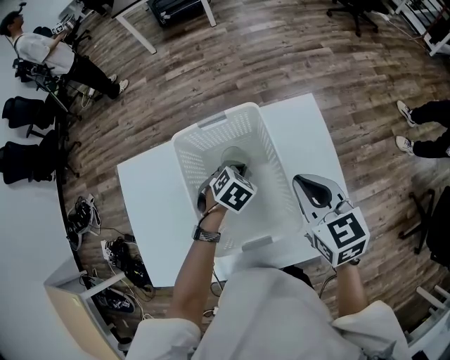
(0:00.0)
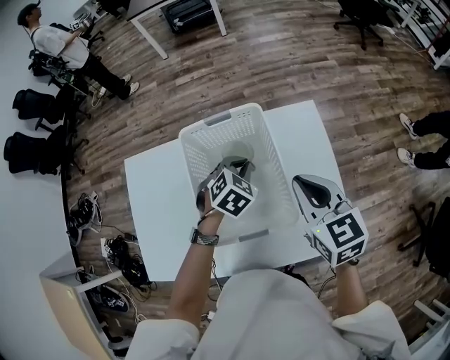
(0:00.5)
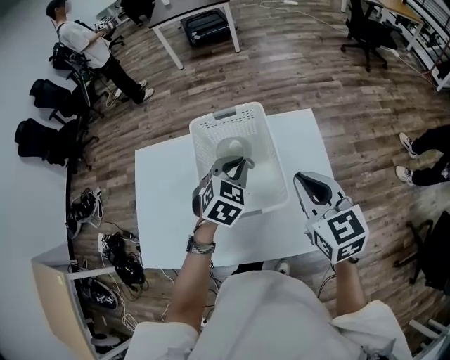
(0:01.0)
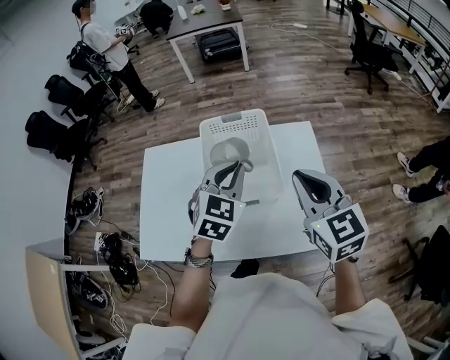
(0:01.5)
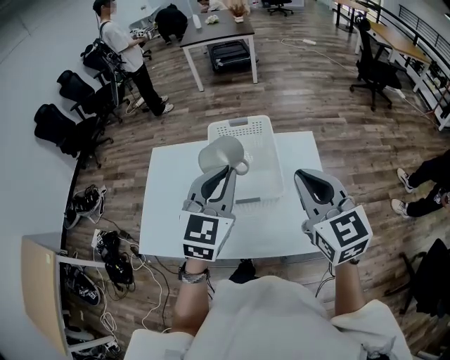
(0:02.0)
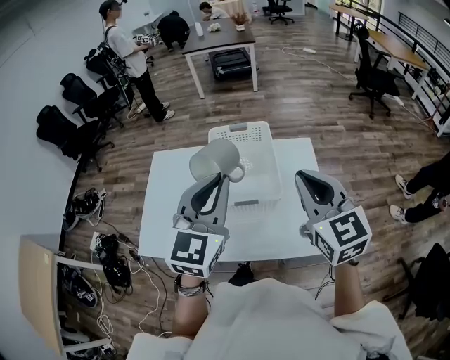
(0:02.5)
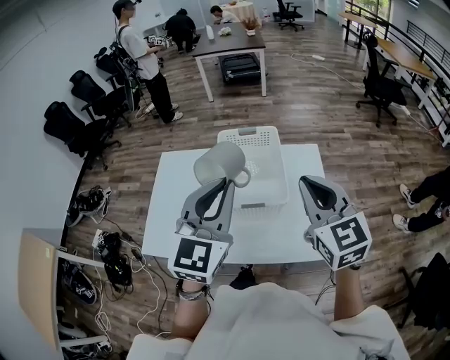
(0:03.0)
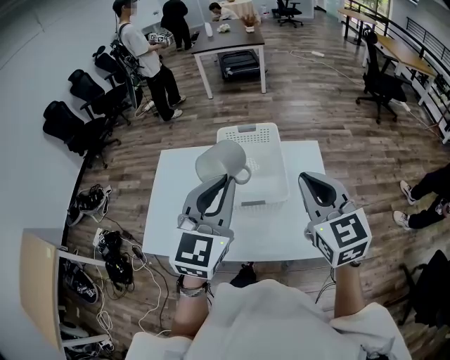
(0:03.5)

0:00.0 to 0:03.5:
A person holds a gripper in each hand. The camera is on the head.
0:00.0 to 0:02.0: The left gripper moves upward and backward, about 40 cm, and tilts its fingers some 60 degrees upward; the right gripper is displaced upward and backward by roughly 25 cm, and turns by roughly 30 degrees.
0:02.0 to 0:03.5: The left gripper shifts some 5 cm upward.

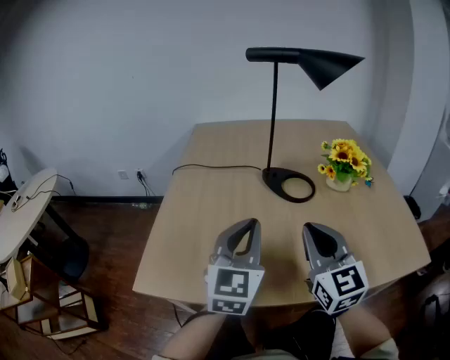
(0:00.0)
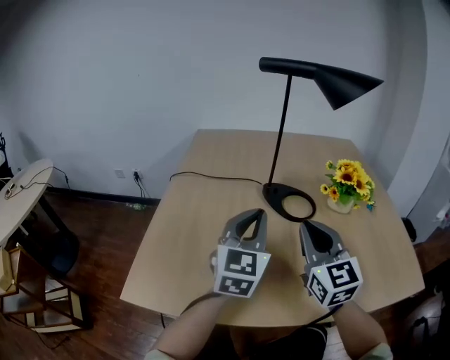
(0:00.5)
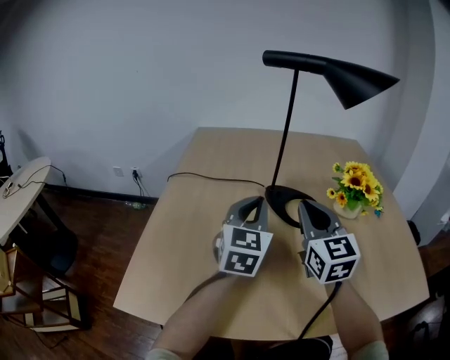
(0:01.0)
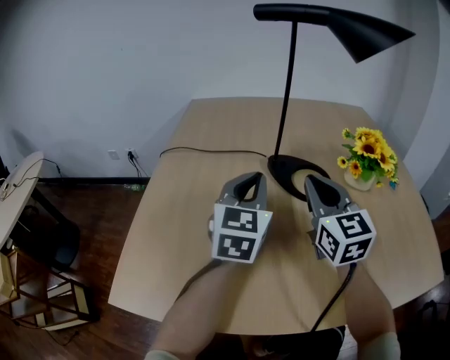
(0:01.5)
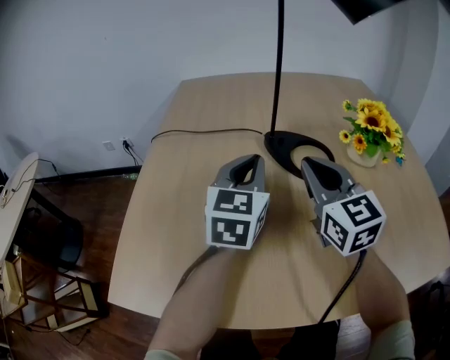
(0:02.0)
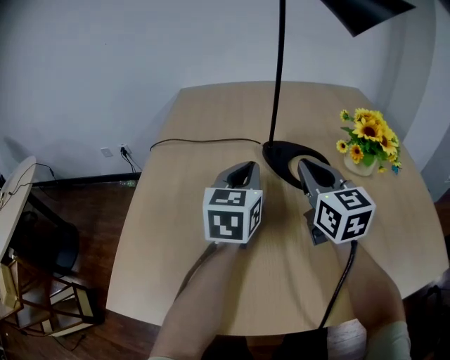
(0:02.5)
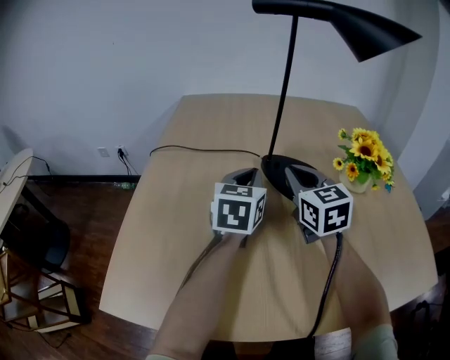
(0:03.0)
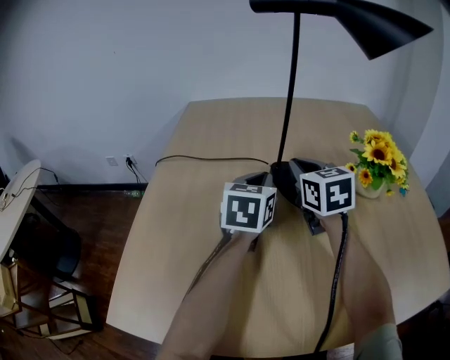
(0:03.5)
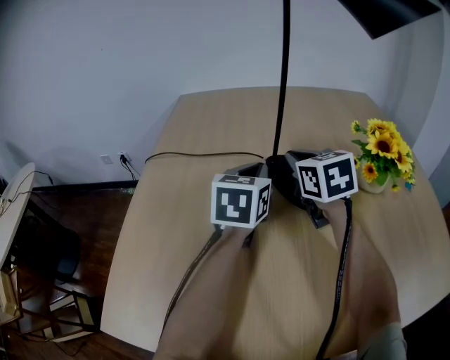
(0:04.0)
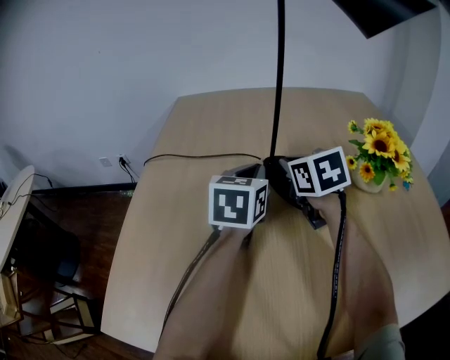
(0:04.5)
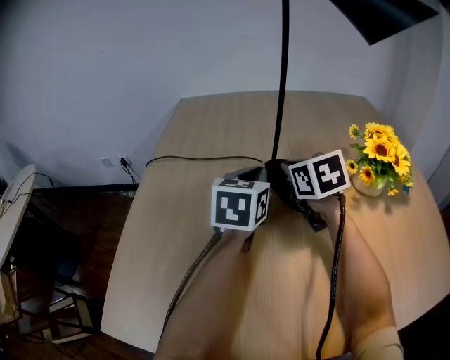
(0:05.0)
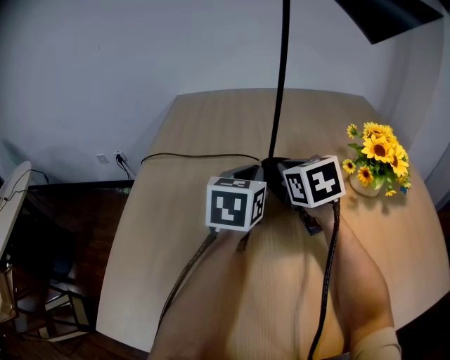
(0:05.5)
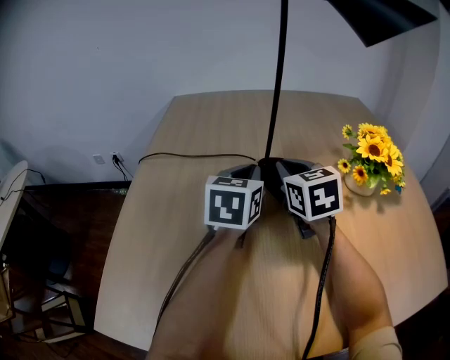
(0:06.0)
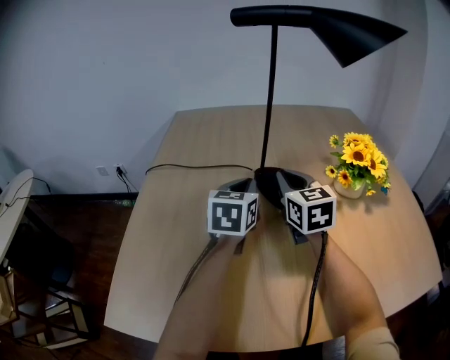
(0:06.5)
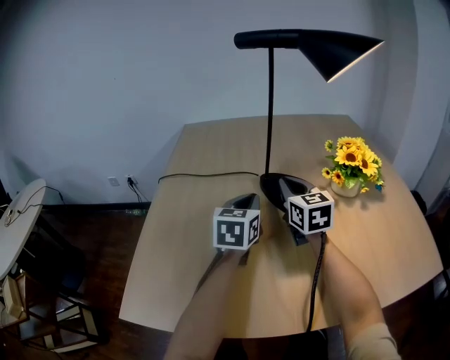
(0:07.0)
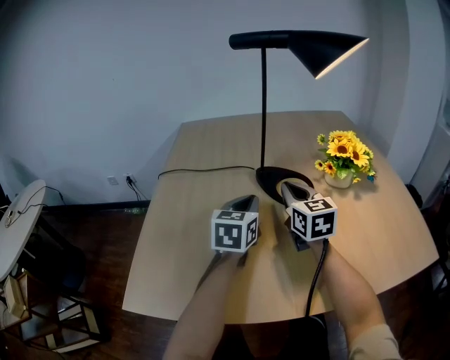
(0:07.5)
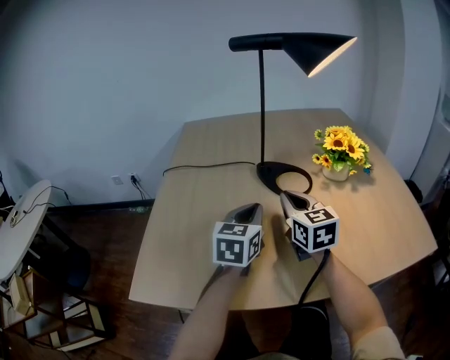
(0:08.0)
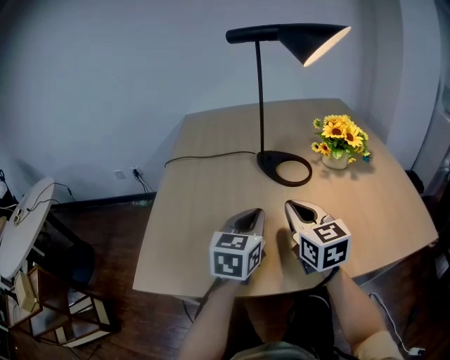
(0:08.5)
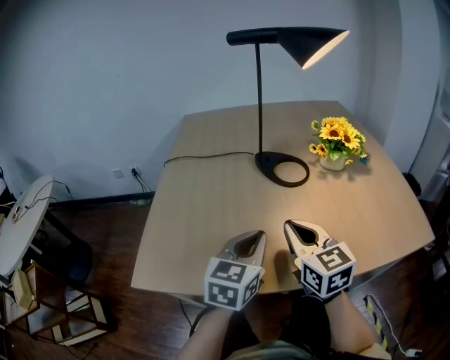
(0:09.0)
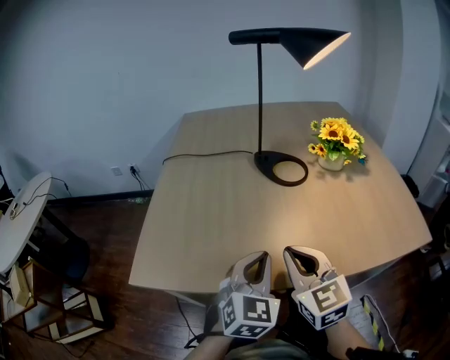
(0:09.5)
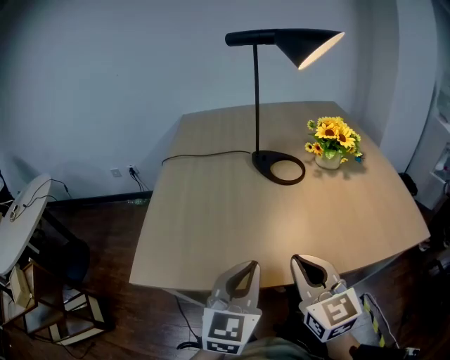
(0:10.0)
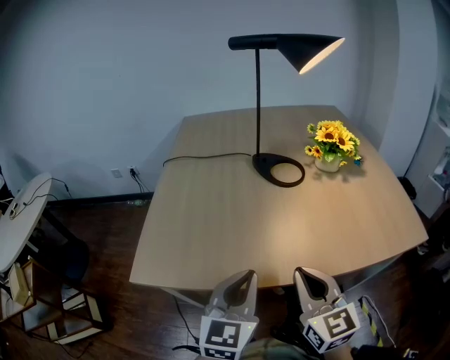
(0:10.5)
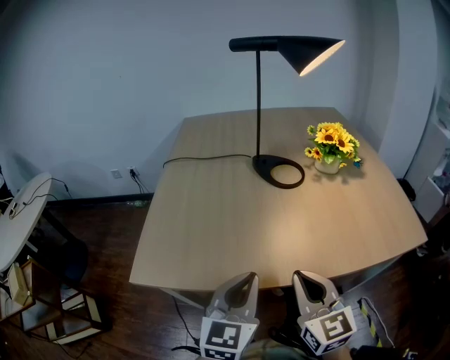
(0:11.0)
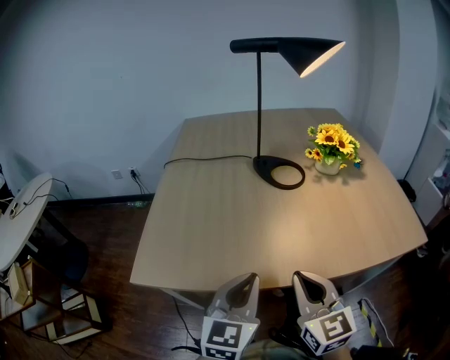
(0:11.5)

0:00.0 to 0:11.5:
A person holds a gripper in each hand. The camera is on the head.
0:00.0 to 0:02.0: Both grippers move forward, about 15 cm.
0:02.0 to 0:04.0: The left gripper heads forward, covering about 10 cm. Meanwhile the right gripper shifts approximately 15 cm forward, and rotates roughly 20 degrees.
0:04.0 to 0:06.0: There are only small adjustments of the grippers.
0:06.0 to 0:07.5: Both grippers move backward, approximately 10 cm.
0:07.5 to 0:09.5: Both grippers move backward, some 25 cm. The left gripper changes its angle by about 20 degrees.
0:09.5 to 0:11.5: Both grippers travel together backward, approximately 5 cm. The left gripper changes its angle by about 20 degrees.

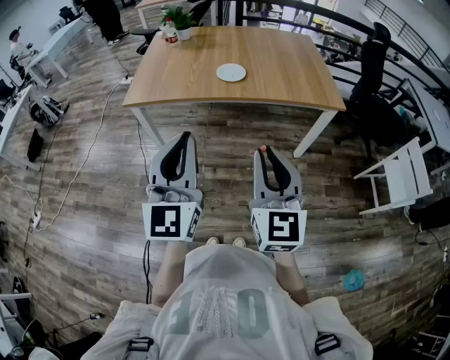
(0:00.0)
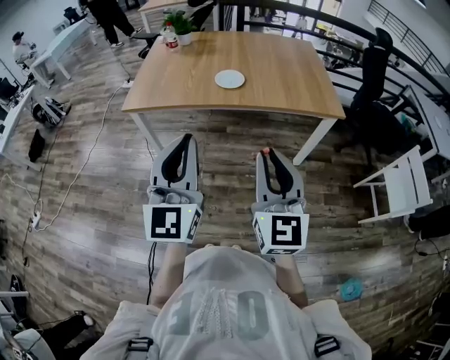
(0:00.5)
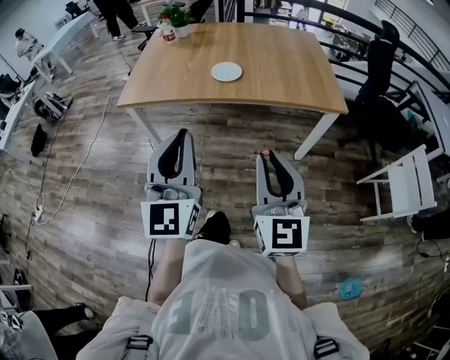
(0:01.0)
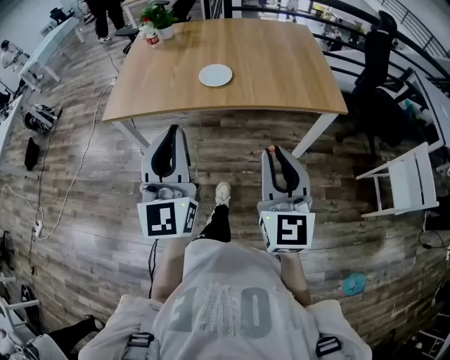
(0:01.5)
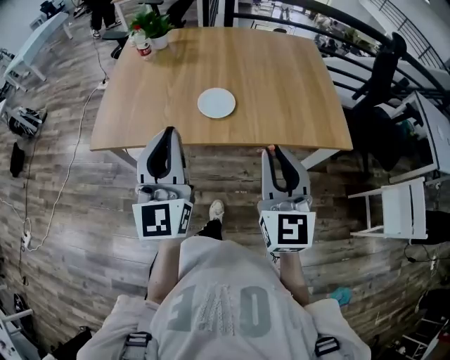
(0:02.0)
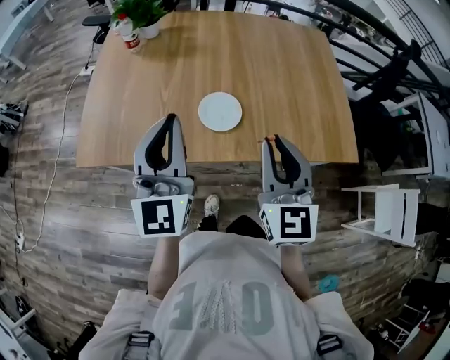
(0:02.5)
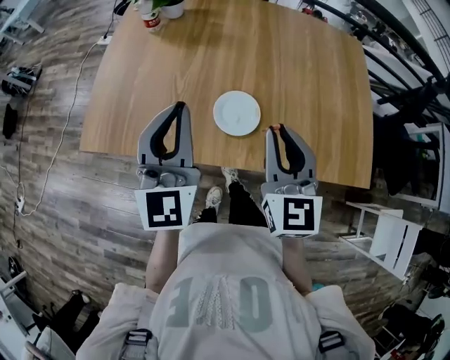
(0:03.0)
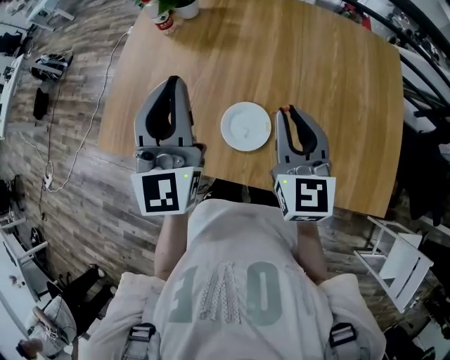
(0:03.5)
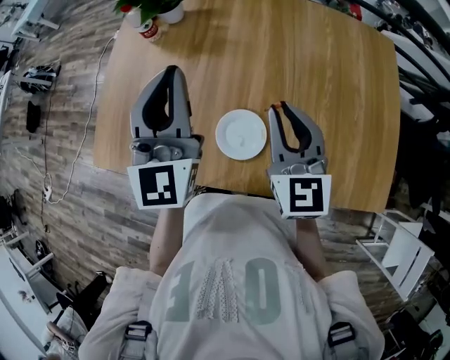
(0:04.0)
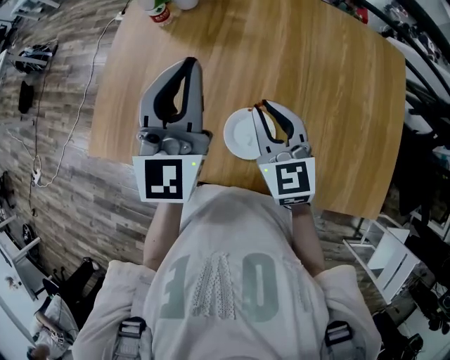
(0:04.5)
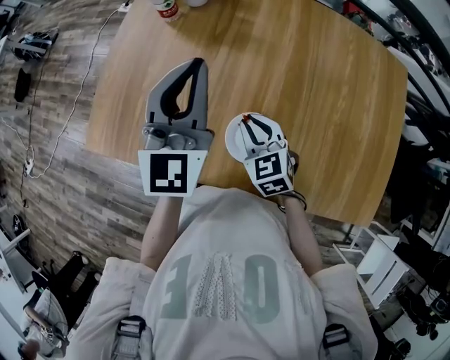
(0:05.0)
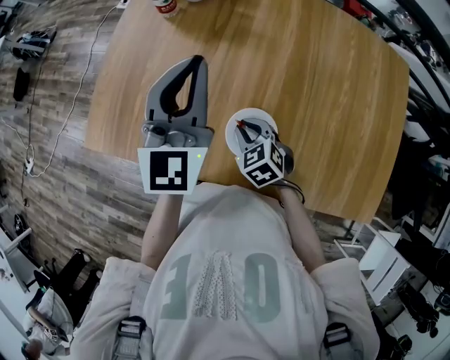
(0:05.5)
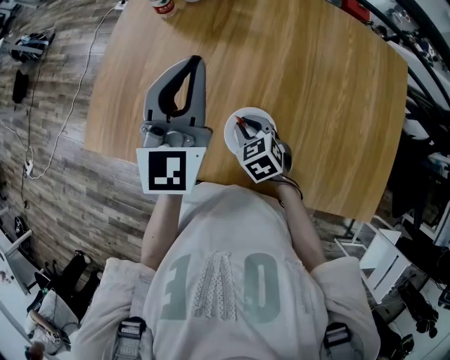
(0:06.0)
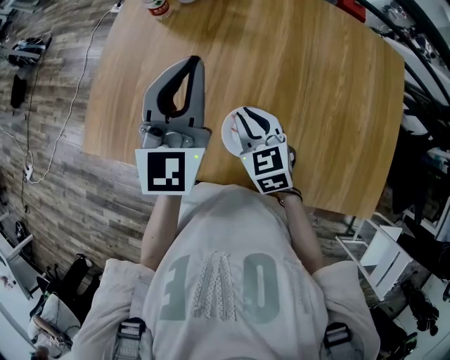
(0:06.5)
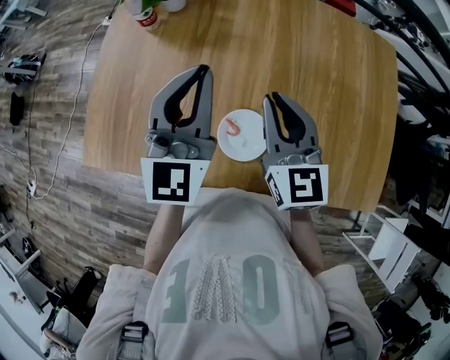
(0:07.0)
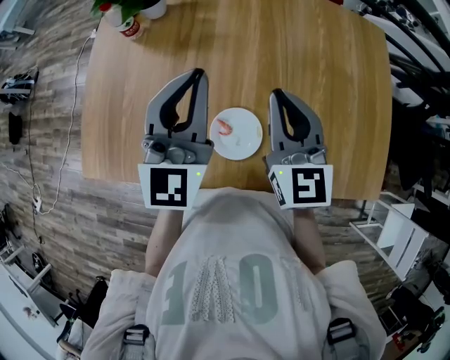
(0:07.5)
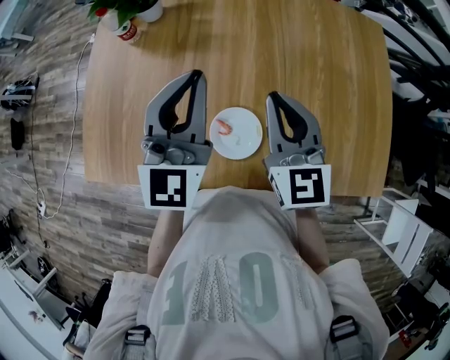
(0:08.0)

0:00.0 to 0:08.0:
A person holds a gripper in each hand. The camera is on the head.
0:00.0 to 0:02.0: Both grippers travel together forward, some 30 cm.
0:02.0 to 0:04.0: The two grippers go about 35 cm forward.
0:04.0 to 0:06.0: The left gripper heads downward, covering roughly 5 cm. Meanwhile the right gripper goes approximately 25 cm downward and to the left, and angles its fingers downward, by approximately 40 degrees.
0:06.0 to 0:08.0: The left gripper moves to the right, about 5 cm; the right gripper moves upward and to the right, some 25 cm, and points its fingers some 40 degrees further upward.

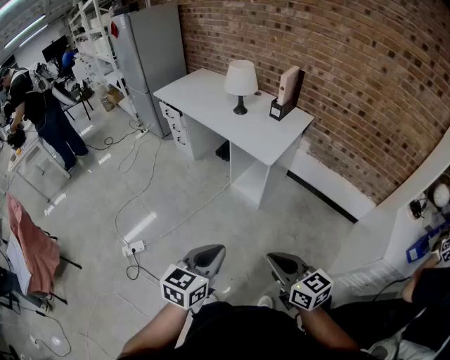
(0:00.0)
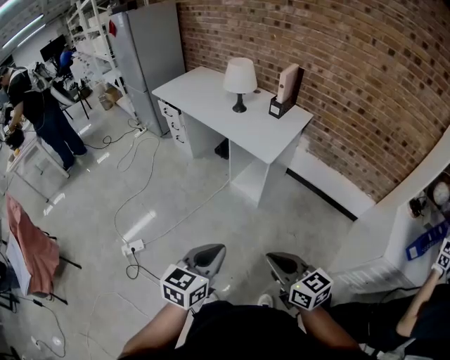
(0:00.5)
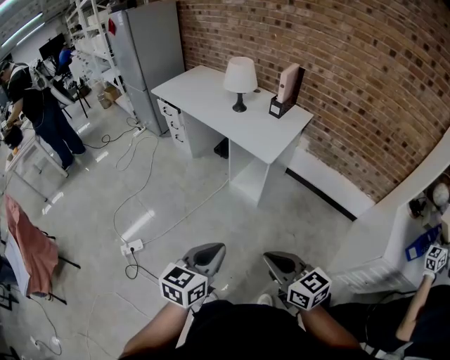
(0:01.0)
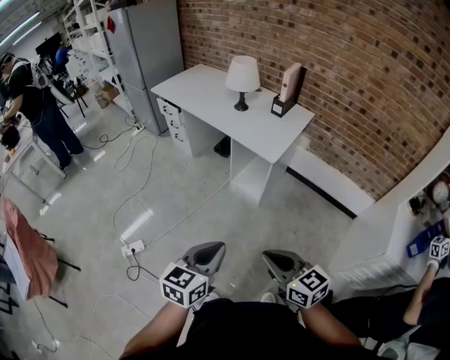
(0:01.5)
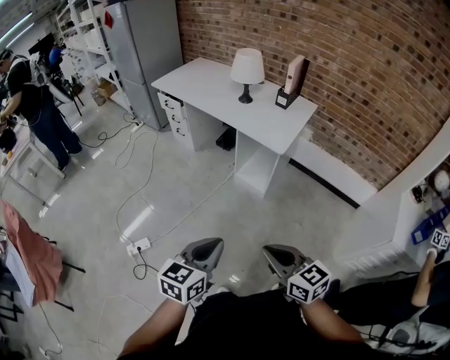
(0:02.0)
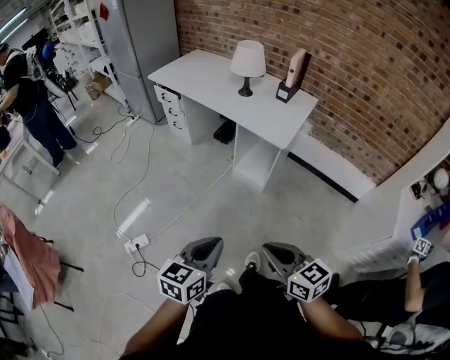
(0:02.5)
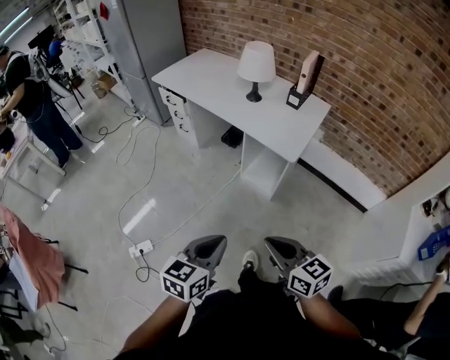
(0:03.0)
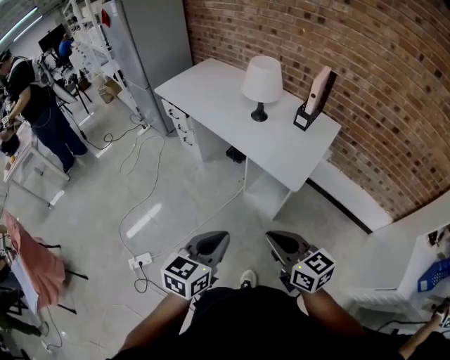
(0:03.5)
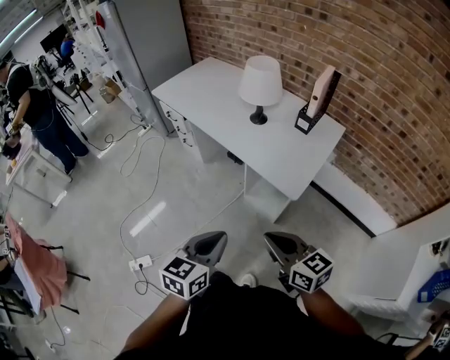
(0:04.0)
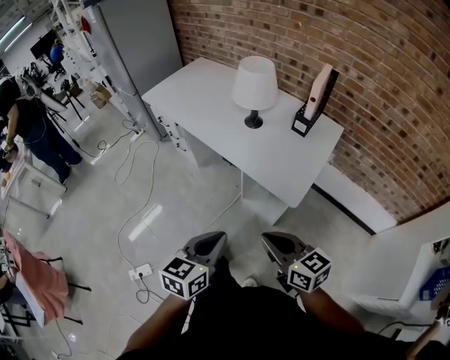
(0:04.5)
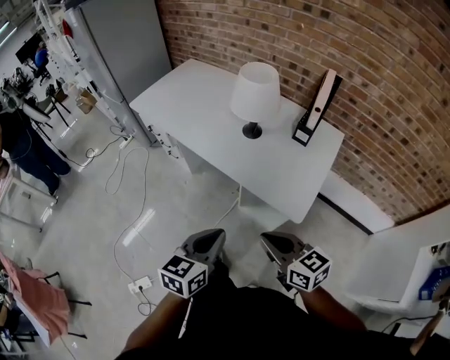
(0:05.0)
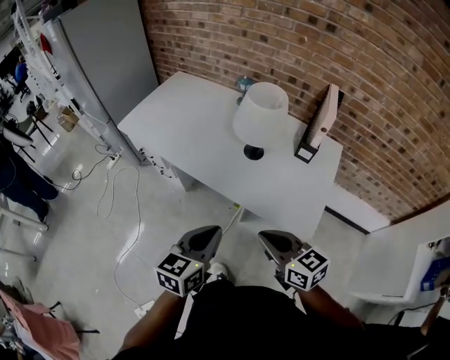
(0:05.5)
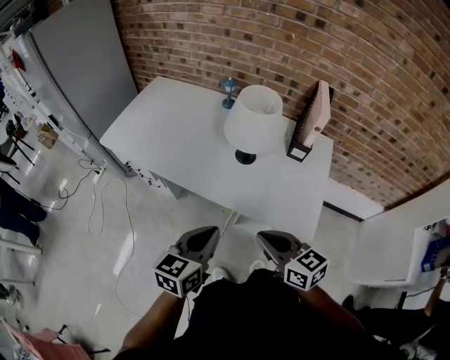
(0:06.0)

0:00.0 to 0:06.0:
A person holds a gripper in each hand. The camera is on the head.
0:00.0 to 0:02.0: The grippers both shift to the left by some 10 cm.
0:02.0 to 0:04.0: The two grippers go about 30 cm forward.
0:04.0 to 0:06.0: The right gripper is displaced forward and to the left by roughly 30 cm. Meanwhile the left gripper heads forward, covering approximately 35 cm.
